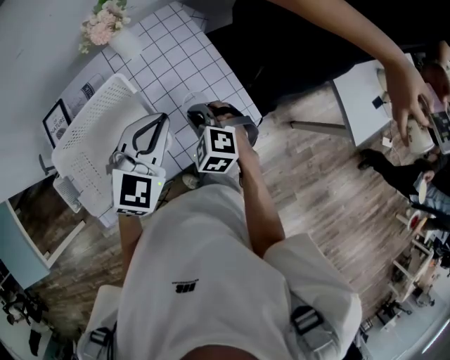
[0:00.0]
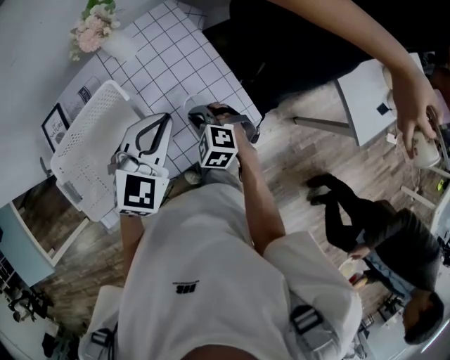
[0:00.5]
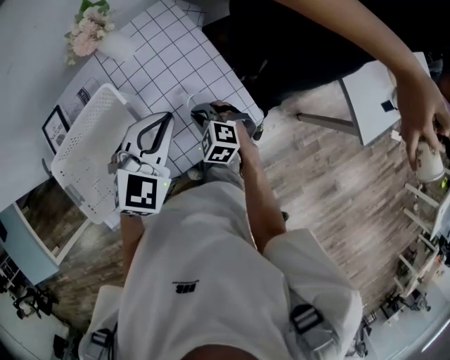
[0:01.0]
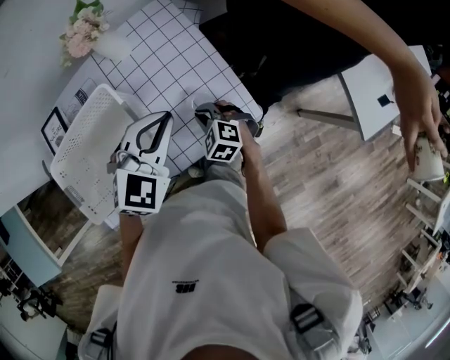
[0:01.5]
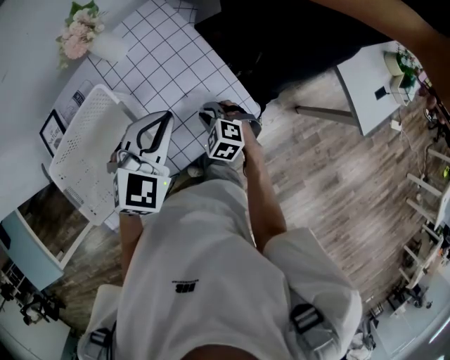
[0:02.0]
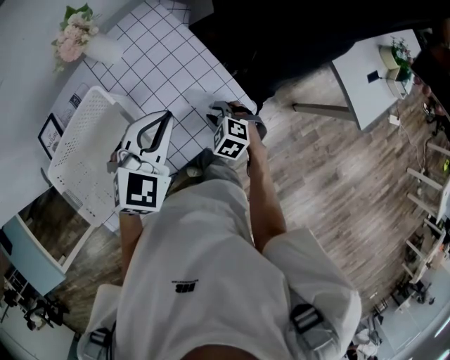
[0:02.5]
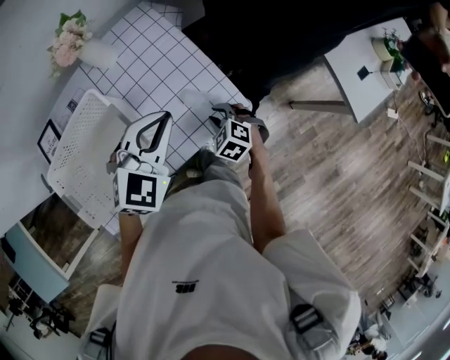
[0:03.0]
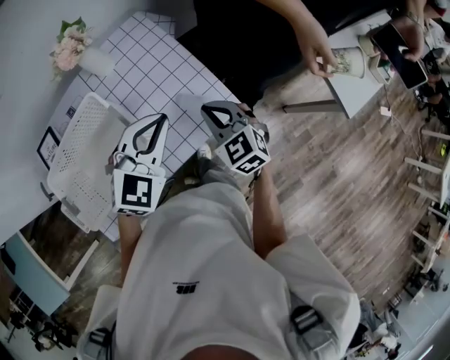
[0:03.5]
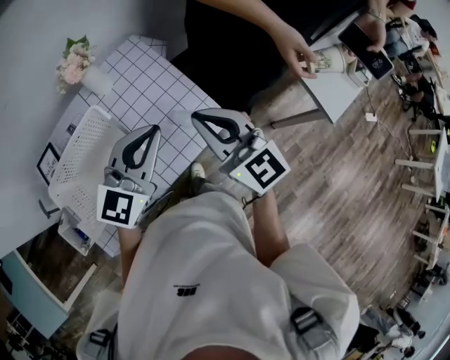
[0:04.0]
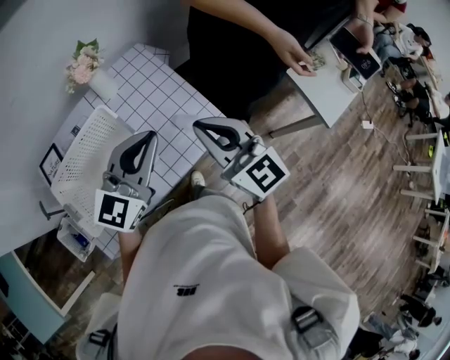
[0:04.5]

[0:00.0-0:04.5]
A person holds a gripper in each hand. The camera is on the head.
0:00.0 to 0:02.0: The right gripper goes approximately 10 cm downward and to the right. The left gripper changes place by some 5 cm.
0:02.0 to 0:04.5: The right gripper goes some 35 cm upward, and tips its fingers upward by roughly 50 degrees. The left gripper moves upward and backward, some 15 cm, and rotates some 30 degrees.

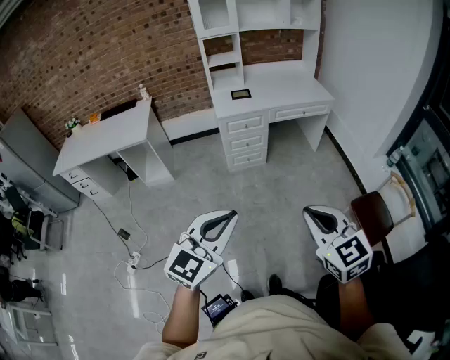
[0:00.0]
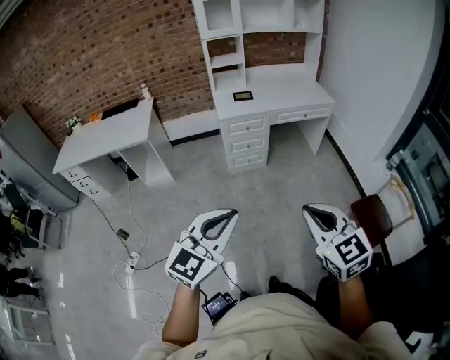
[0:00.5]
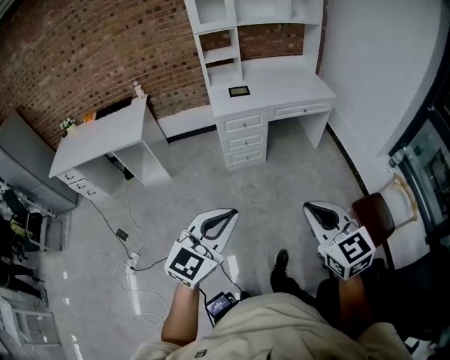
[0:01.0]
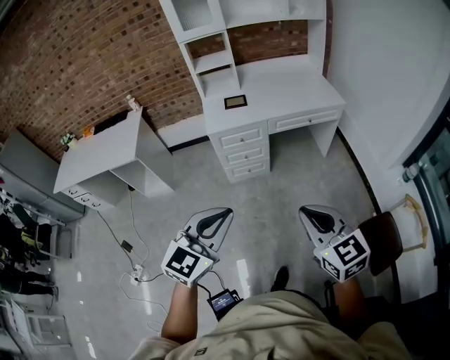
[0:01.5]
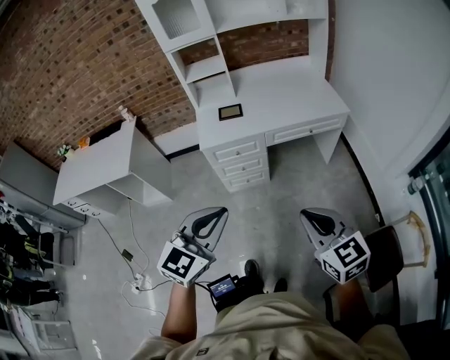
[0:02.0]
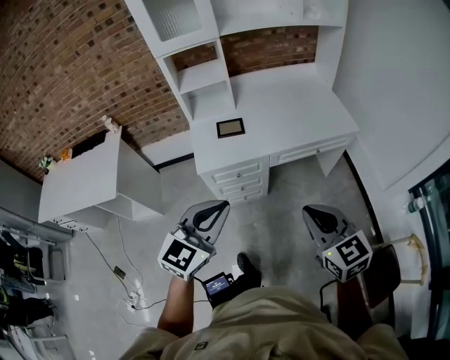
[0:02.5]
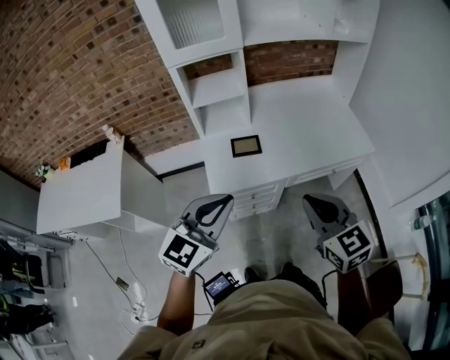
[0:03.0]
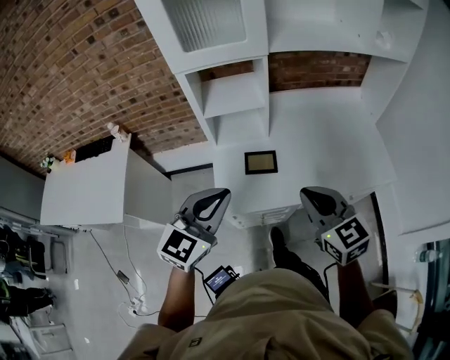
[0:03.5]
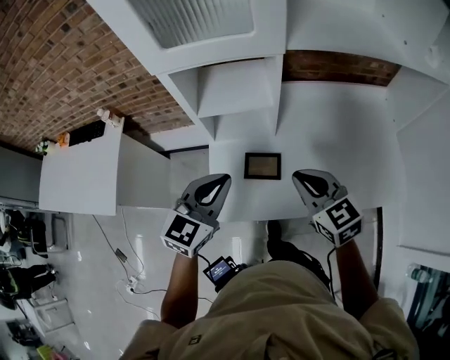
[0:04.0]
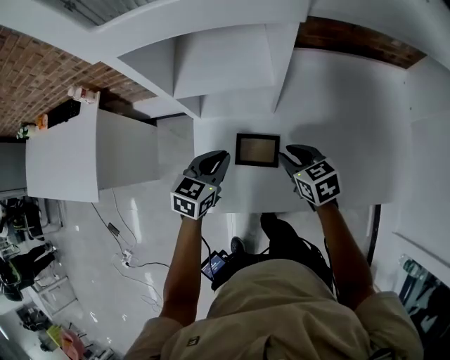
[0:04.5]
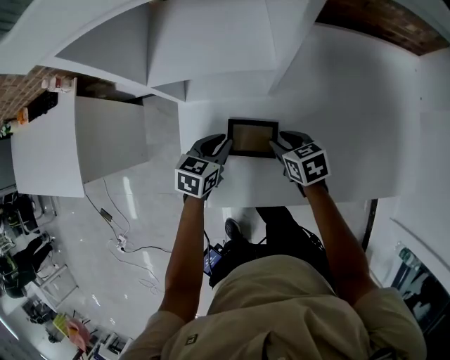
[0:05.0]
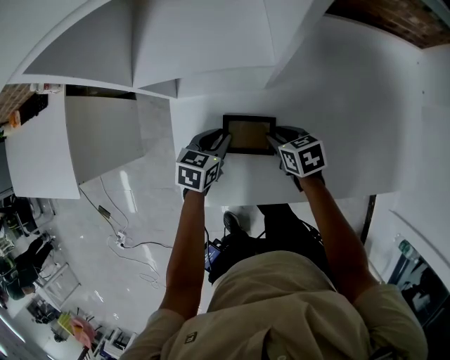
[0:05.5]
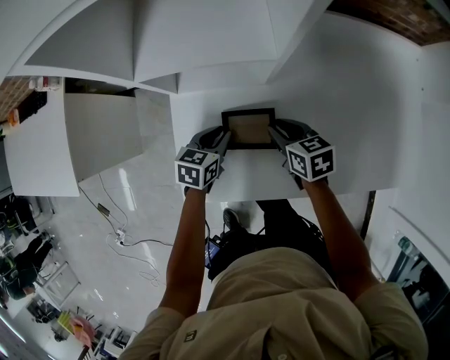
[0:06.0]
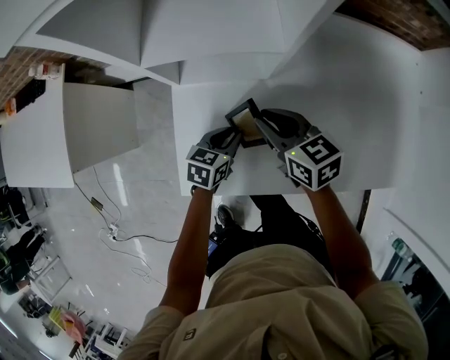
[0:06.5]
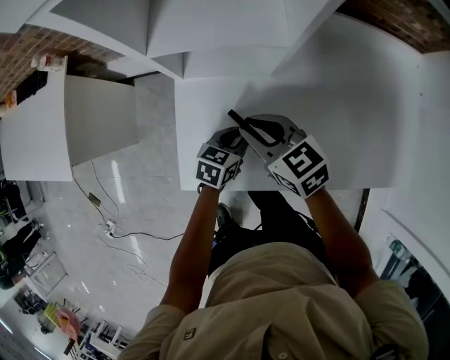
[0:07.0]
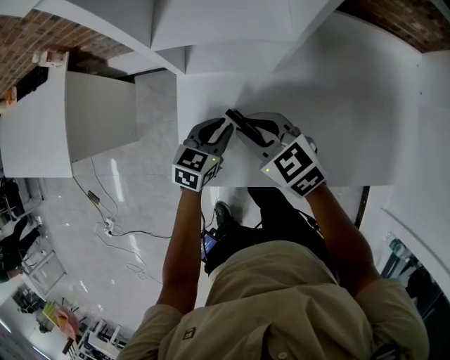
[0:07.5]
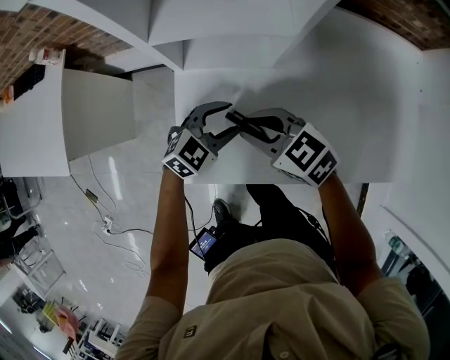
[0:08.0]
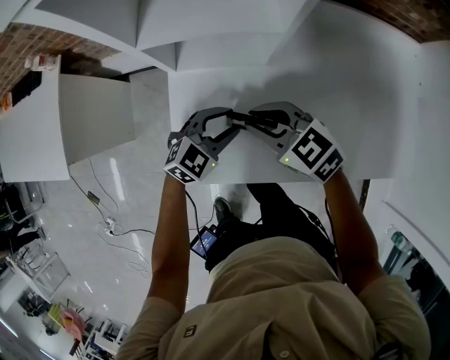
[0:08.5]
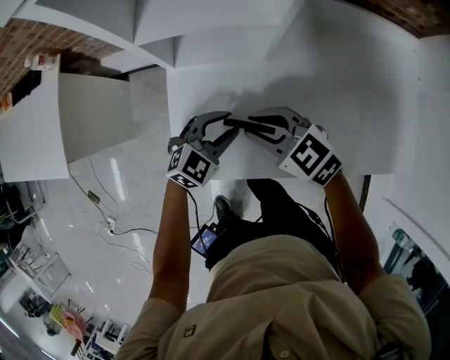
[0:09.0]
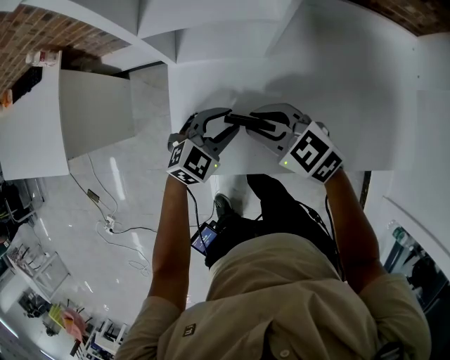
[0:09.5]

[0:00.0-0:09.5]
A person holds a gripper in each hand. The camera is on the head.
0:00.0 to 0:02.0: The two grippers travel together, forward, about 40 cm.
0:02.0 to 0:04.0: The two grippers travel together, forward, some 70 cm.
0:04.0 to 0:05.5: The two grippers go some 35 cm downward. The left gripper swivels approximately 40 degrees. The right gripper changes its angle by some 40 degrees, and opens its fingers.
0:05.5 to 0:07.5: The left gripper shifts by some 5 cm; the right gripper moves upward and to the left, roughly 20 cm, and changes its angle by about 40 degrees.
0:07.5 to 0:09.5: The left gripper shifts by approximately 5 cm, changes its angle by about 40 degrees, and opens up.

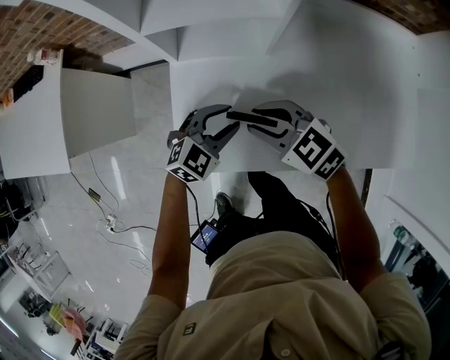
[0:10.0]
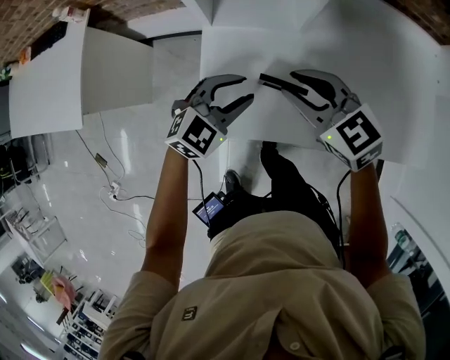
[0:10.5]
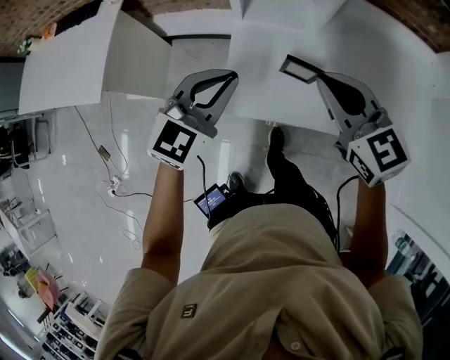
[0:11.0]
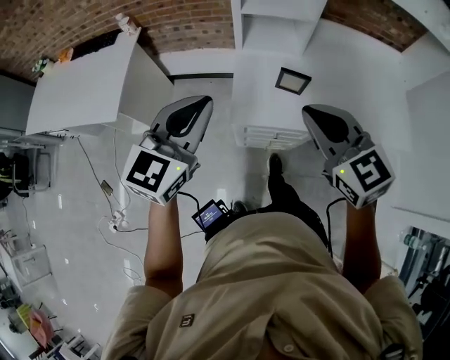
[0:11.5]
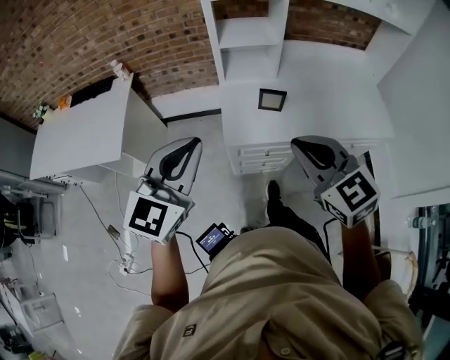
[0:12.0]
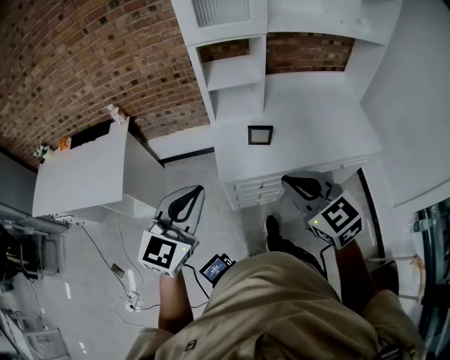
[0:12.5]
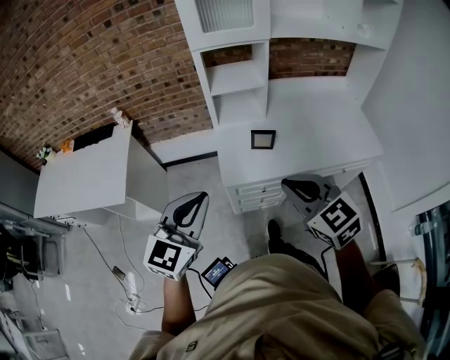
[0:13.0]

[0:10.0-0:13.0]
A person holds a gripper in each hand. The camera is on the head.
0:10.0 to 0:11.5: The right gripper is displaced upward and backward by some 35 cm, swivels roughly 30 degrees, and closes up. The left gripper heads upward, to the left and backward, covering some 50 cm, rotates approximately 40 degrees, and closes up.
0:11.5 to 0:13.0: The right gripper is displaced backward by roughly 10 cm, while the left gripper shifts roughly 10 cm backward and upward.

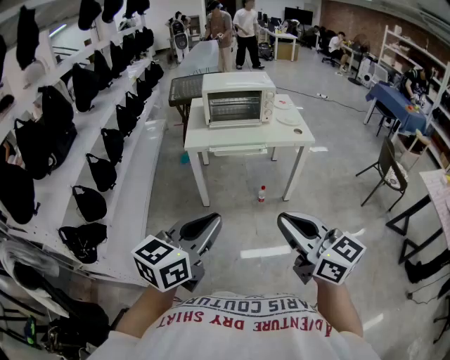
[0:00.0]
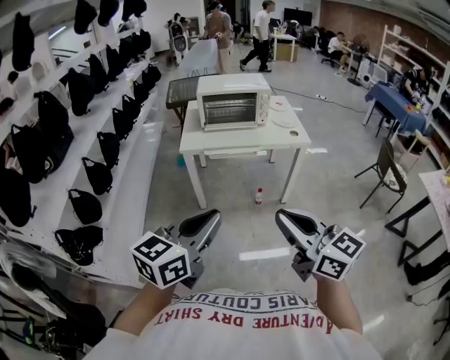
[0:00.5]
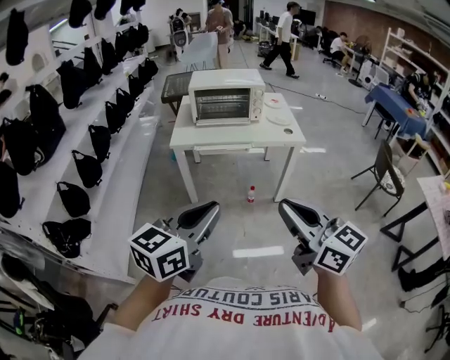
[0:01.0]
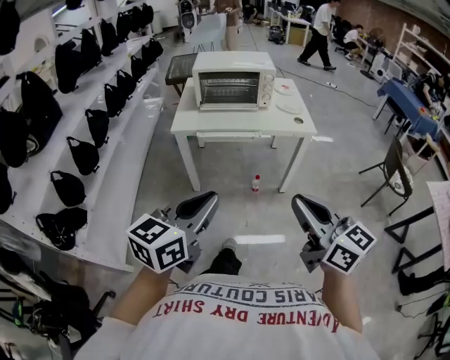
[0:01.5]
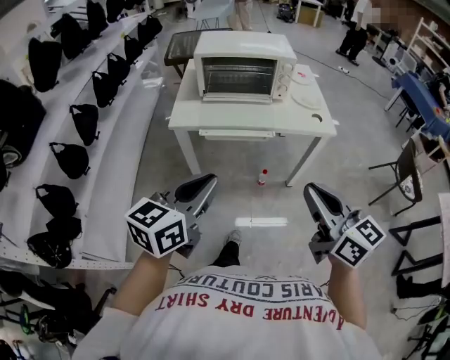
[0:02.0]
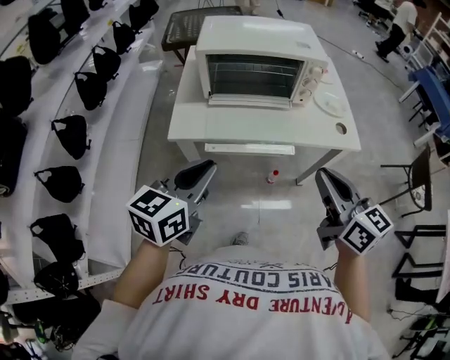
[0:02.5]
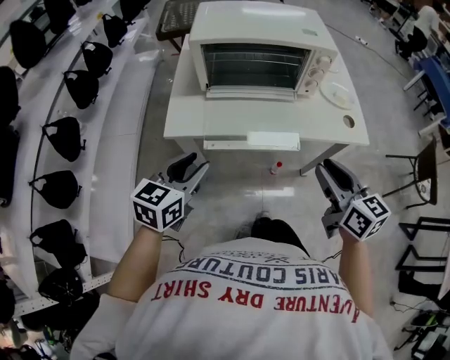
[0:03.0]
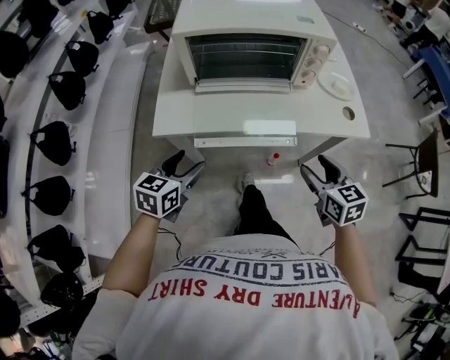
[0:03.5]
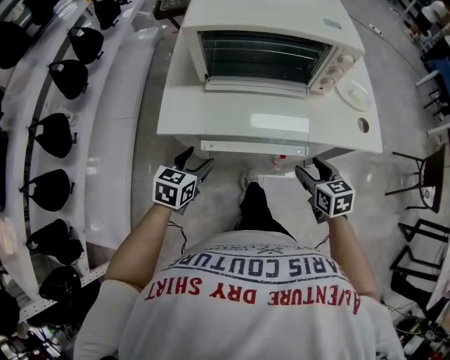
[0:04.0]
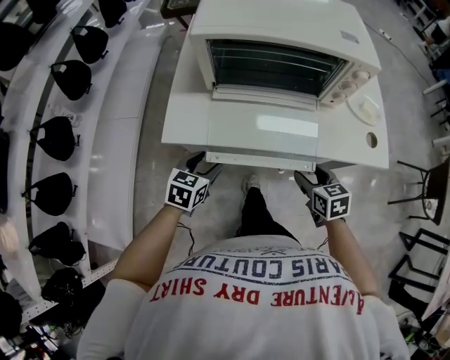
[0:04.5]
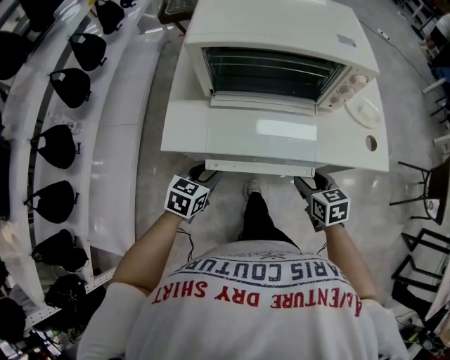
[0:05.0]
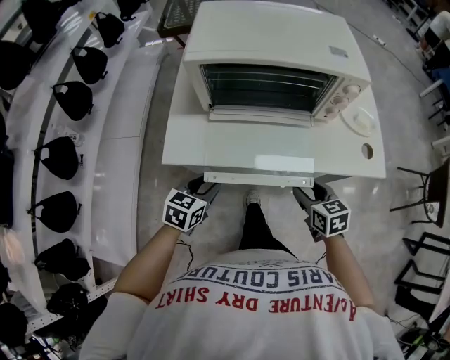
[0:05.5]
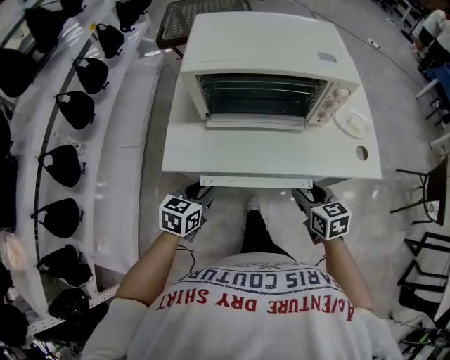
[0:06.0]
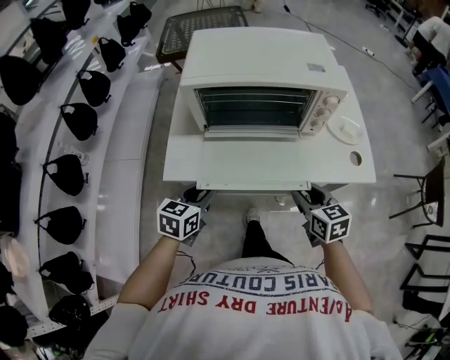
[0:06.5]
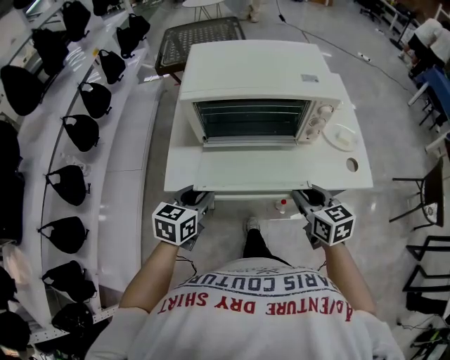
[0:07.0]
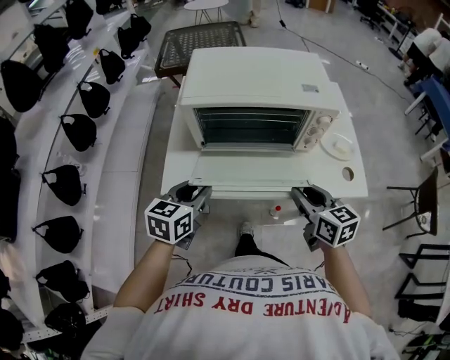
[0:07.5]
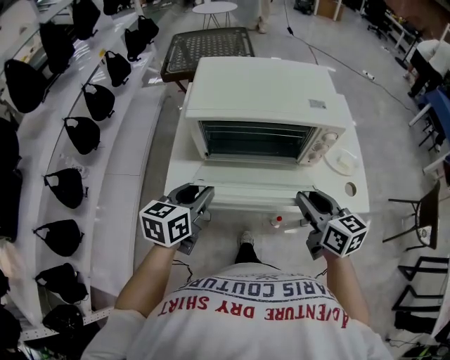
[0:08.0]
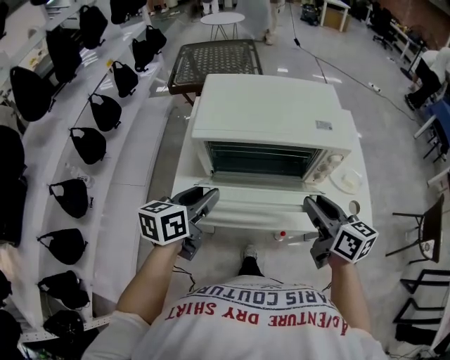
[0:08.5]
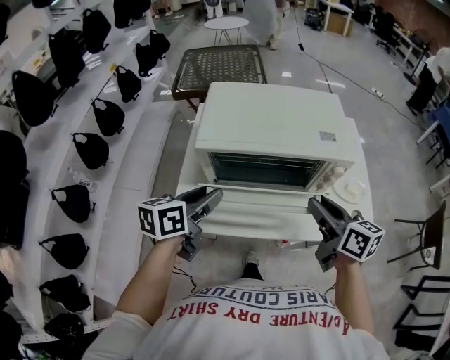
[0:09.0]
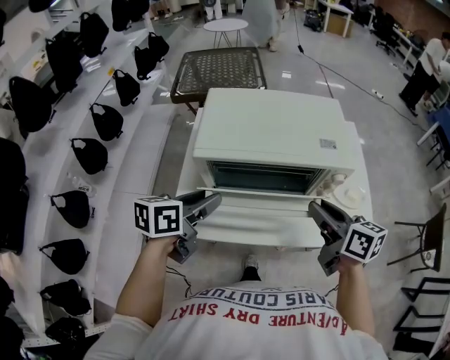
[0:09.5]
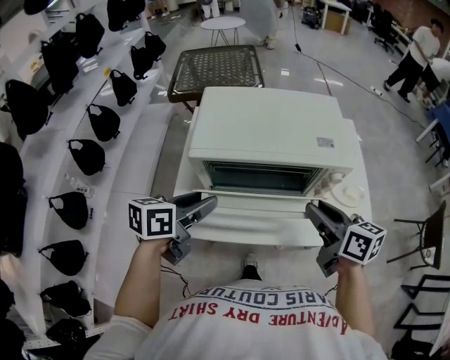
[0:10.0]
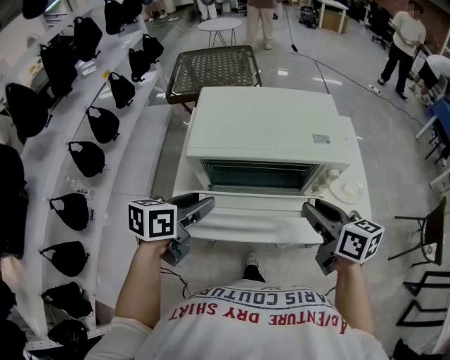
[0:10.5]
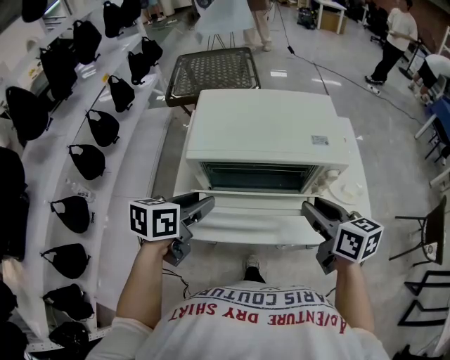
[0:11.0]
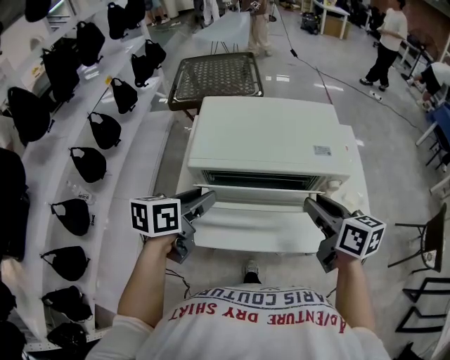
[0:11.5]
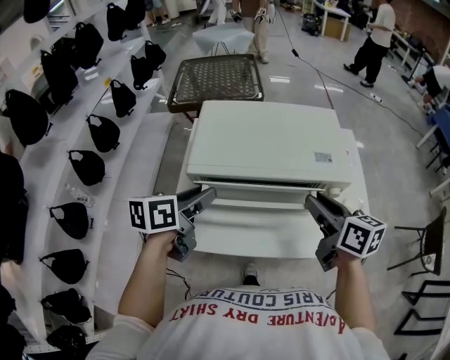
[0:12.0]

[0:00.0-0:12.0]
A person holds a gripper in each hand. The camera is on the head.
0:00.0 to 0:02.0: Both grippers travel together forward, roughly 25 cm.
0:02.0 to 0:04.0: Both grippers travel together forward and downward, about 40 cm. The right gripper tilts its fingers about 40 degrees downward, and opens. The left gripper turns by about 30 degrees, and opens.
0:04.0 to 0:06.0: The left gripper closes.
0:06.0 to 0:08.0: The two grippers go about 15 cm upward and forward.
0:08.0 to 0:10.0: Both grippers move forward, approximately 5 cm.
0:10.0 to 0:12.0: The grippers both shift forward by some 5 cm.
